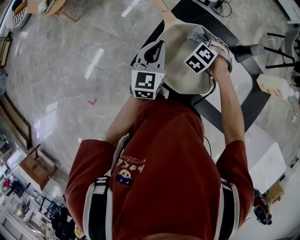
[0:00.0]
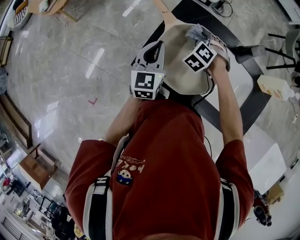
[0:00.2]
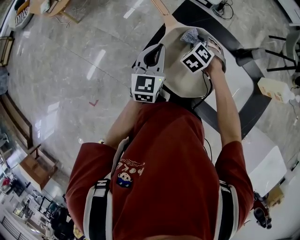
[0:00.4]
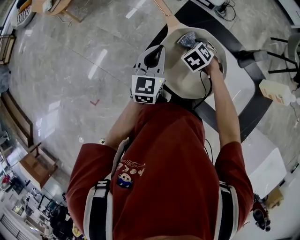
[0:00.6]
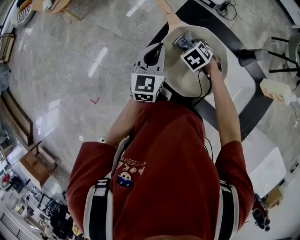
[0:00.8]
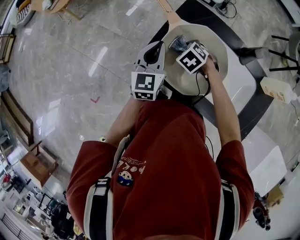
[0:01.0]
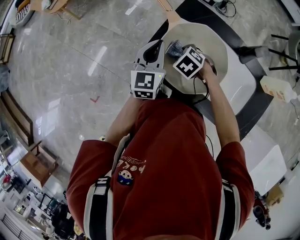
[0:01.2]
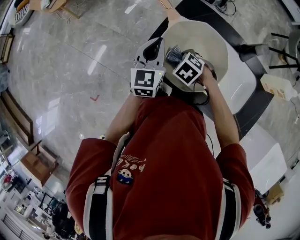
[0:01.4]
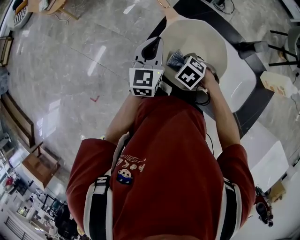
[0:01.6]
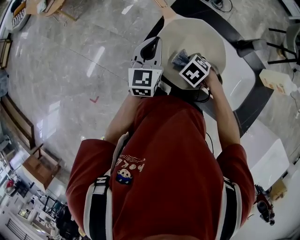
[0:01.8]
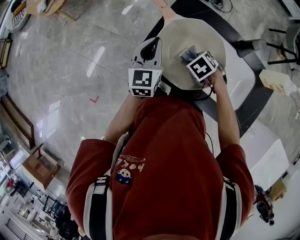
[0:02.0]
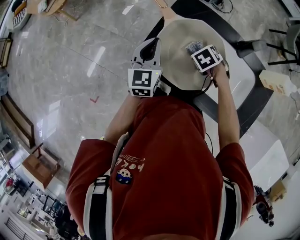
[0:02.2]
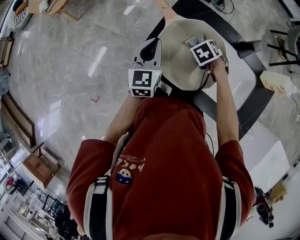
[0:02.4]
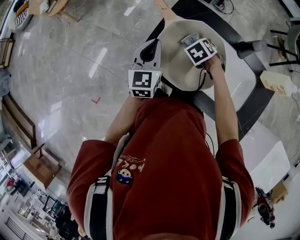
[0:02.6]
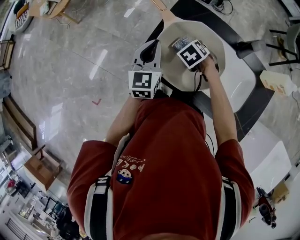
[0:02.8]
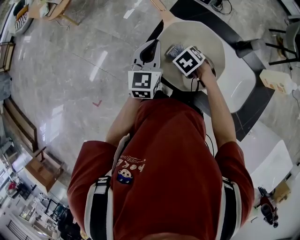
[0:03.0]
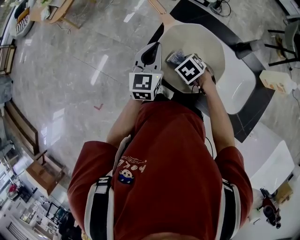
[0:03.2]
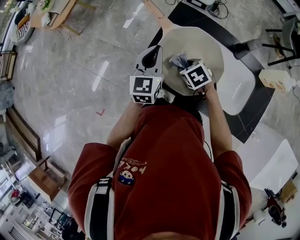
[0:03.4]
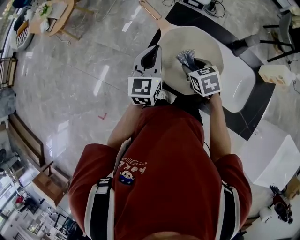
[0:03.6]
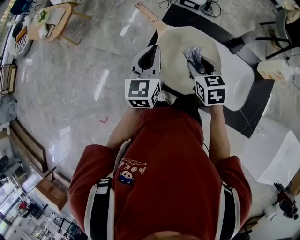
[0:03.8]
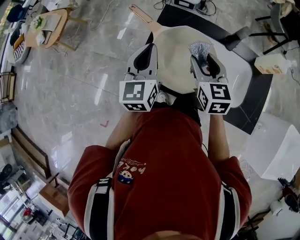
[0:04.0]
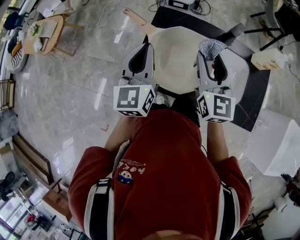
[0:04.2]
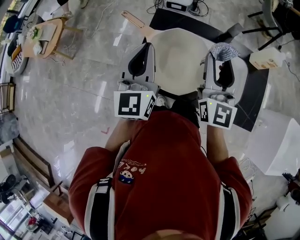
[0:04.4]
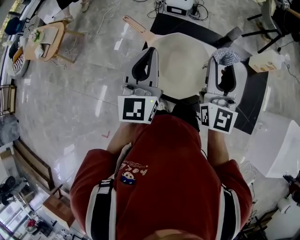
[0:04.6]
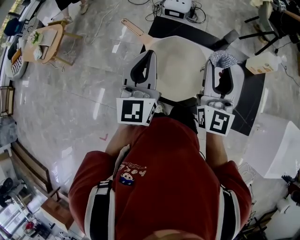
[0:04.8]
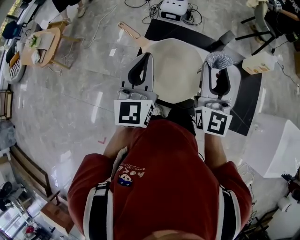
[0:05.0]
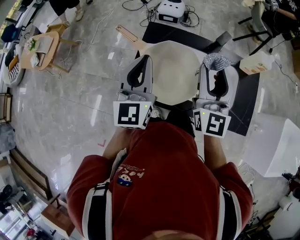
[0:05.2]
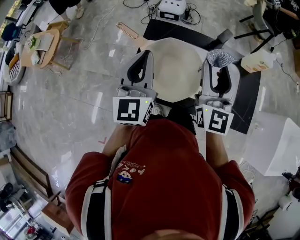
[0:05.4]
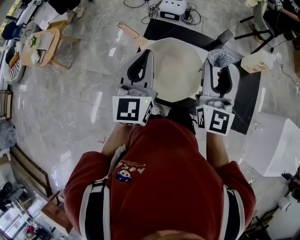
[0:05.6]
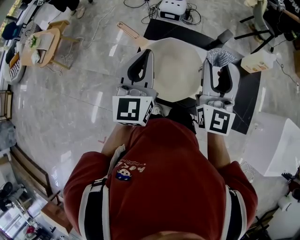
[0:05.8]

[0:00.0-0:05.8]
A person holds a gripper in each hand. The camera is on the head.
0:00.0 to 0:01.4: The right gripper shifts by some 15 cm, and rotates approximately 30 degrees.
0:02.8 to 0:04.4: The right gripper heads upward, covering roughly 30 cm, and angles its fingers upward, by about 80 degrees; the left gripper moves upward, approximately 15 cm, and turns by about 20 degrees.
0:04.4 to 0:05.8: The grippers make only small movements.

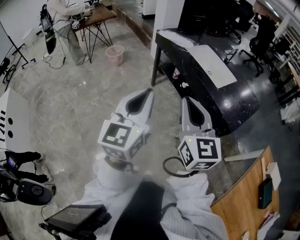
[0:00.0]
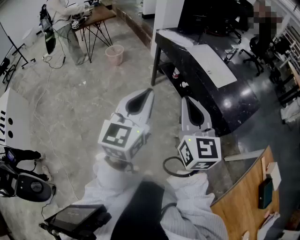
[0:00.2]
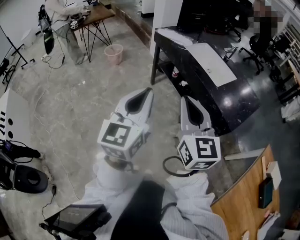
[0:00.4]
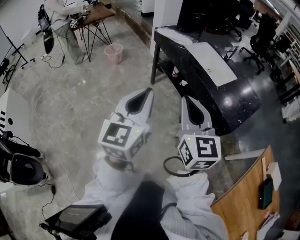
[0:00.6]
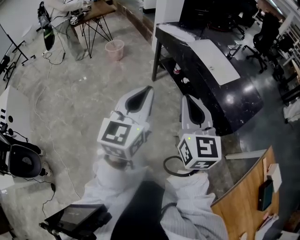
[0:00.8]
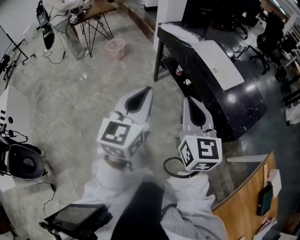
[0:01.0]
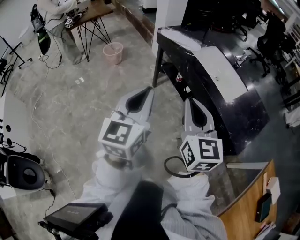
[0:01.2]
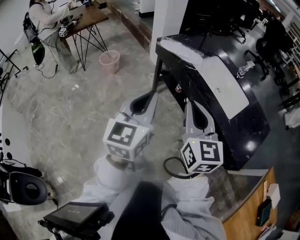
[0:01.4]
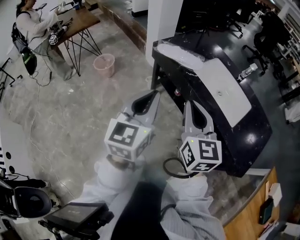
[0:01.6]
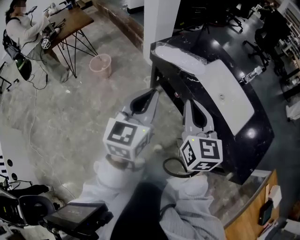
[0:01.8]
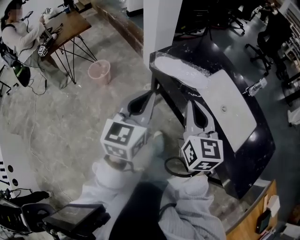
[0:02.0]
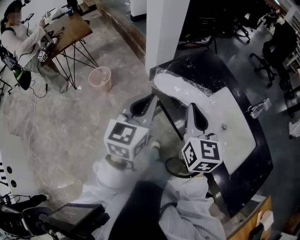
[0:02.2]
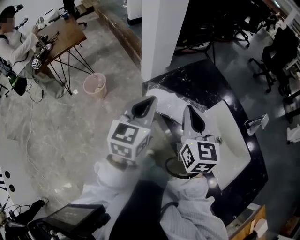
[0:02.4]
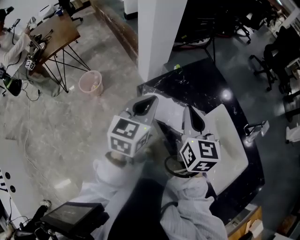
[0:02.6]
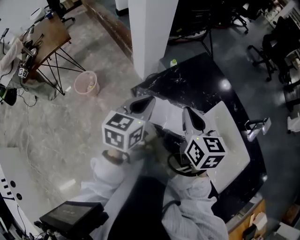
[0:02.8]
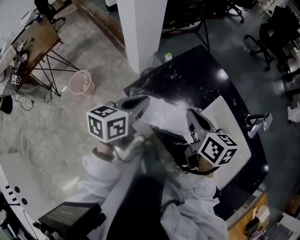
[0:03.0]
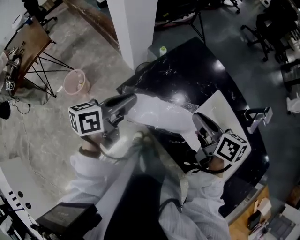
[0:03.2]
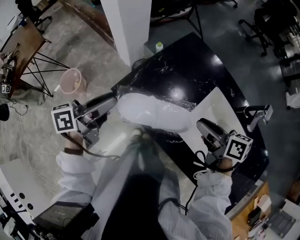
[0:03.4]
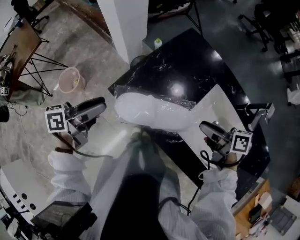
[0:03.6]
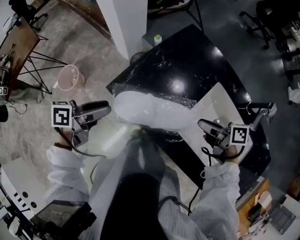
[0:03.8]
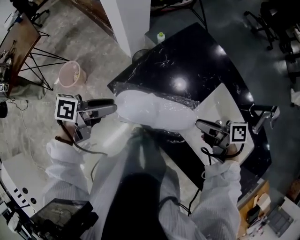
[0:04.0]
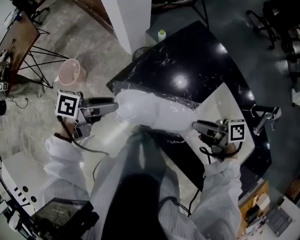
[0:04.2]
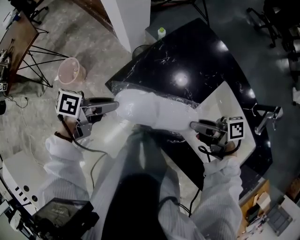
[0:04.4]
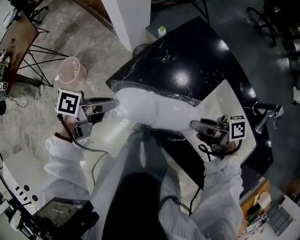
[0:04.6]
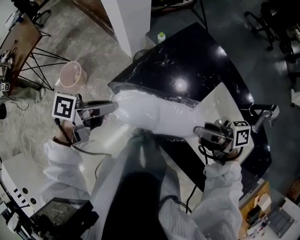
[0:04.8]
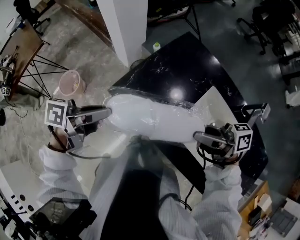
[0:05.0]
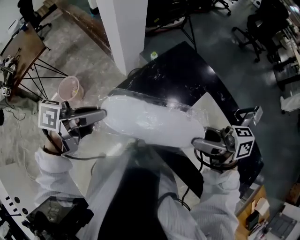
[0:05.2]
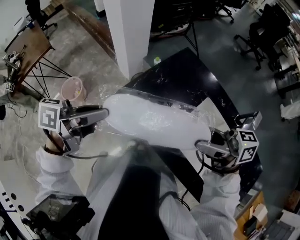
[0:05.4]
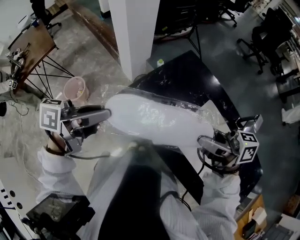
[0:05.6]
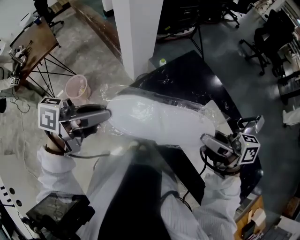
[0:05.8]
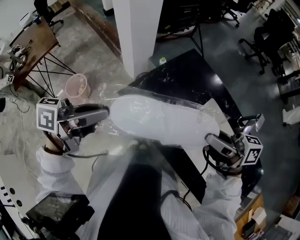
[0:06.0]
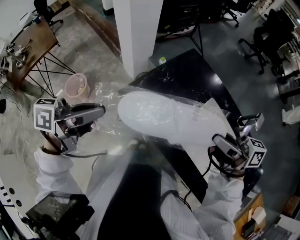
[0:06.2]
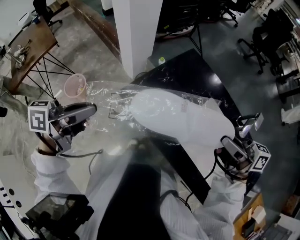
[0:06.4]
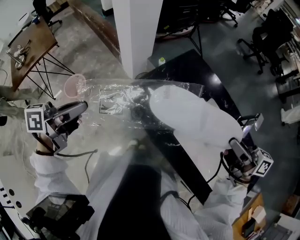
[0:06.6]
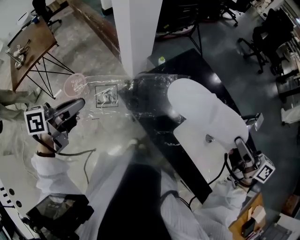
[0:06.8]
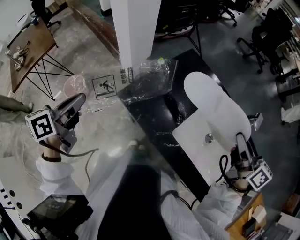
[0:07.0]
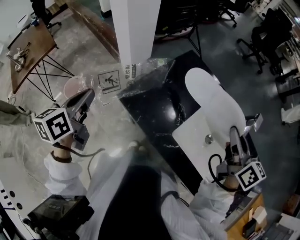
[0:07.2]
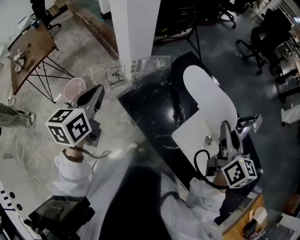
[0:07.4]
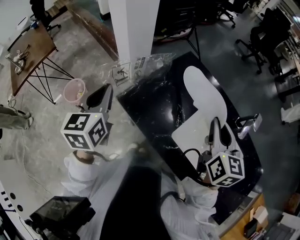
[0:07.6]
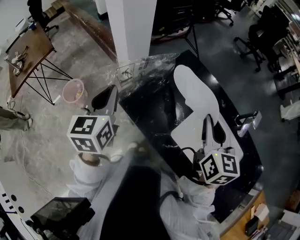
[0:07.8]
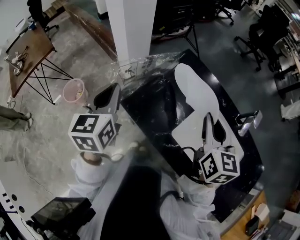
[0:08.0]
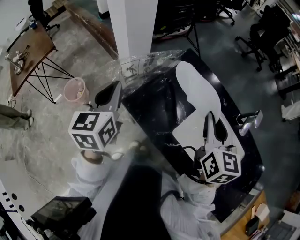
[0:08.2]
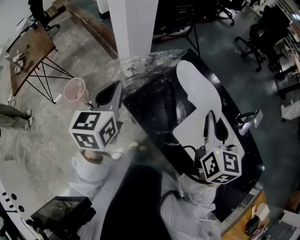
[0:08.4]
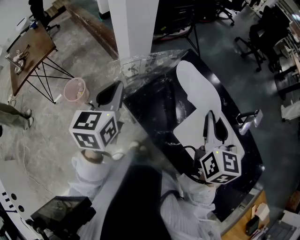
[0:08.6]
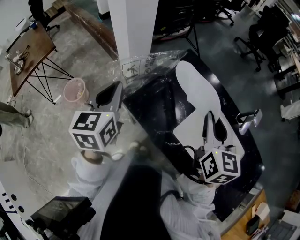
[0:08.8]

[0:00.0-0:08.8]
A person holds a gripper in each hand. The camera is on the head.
0:00.0 to 0:01.4: Both grippers travel together forward, about 25 cm.
0:01.4 to 0:03.0: Both grippers are carried forward, roughly 50 cm. The left gripper rotates some 40 degrees. Meanwhile the right gripper turns by about 40 degrees.
0:03.0 to 0:04.4: Both grippers travel together downward, roughly 10 cm. The right gripper swivels roughly 50 degrees, and opens up. The left gripper swivels some 40 degrees, and opens.
0:04.4 to 0:05.8: The two grippers go about 20 cm upward. The left gripper rotates about 30 degrees, and closes its fingers, while the right gripper turns by approximately 30 degrees.
0:05.8 to 0:07.4: The right gripper changes place by roughly 10 cm, and swivels approximately 70 degrees. The left gripper shifts by some 10 cm, and swivels some 60 degrees.
0:07.4 to 0:08.8: The right gripper heads to the left, covering approximately 5 cm. Meanwhile the left gripper shifts about 5 cm to the right.
